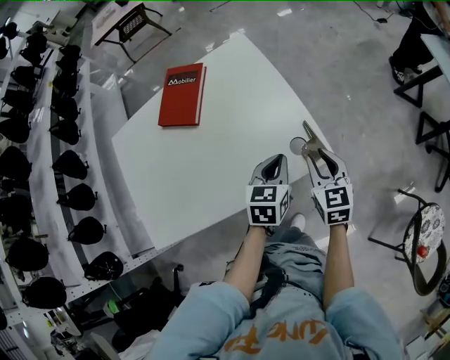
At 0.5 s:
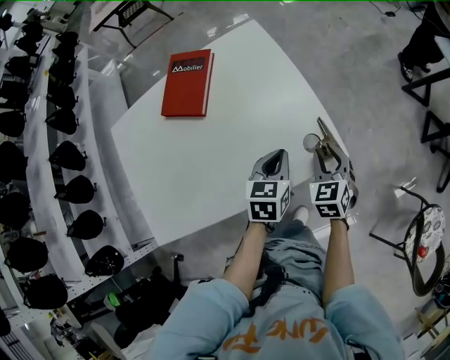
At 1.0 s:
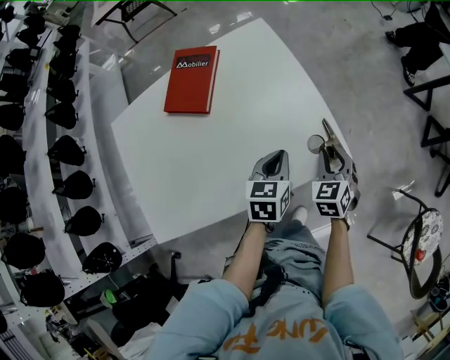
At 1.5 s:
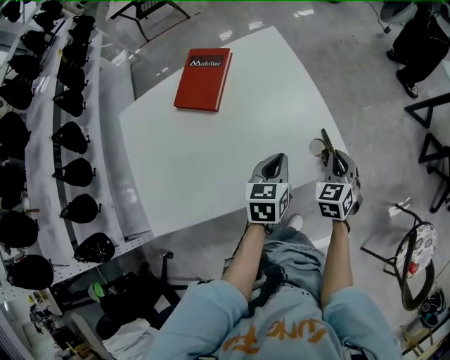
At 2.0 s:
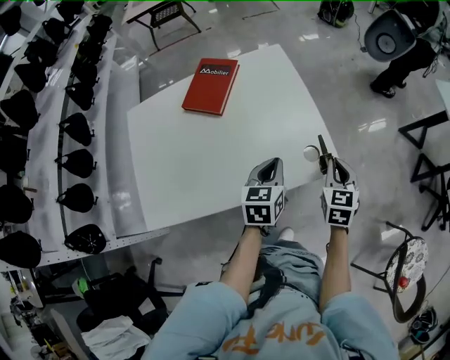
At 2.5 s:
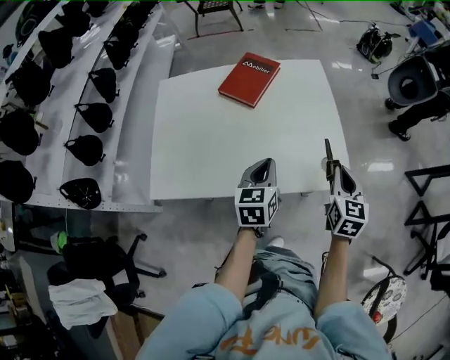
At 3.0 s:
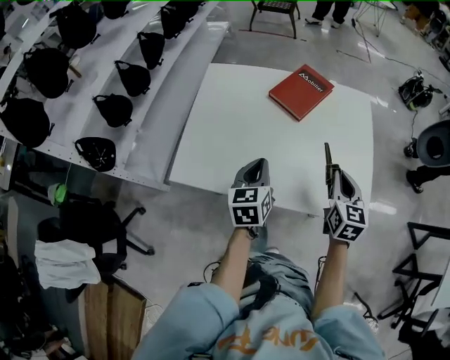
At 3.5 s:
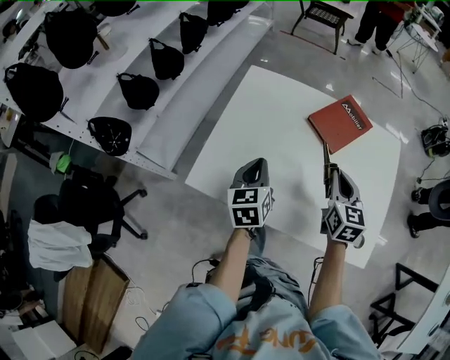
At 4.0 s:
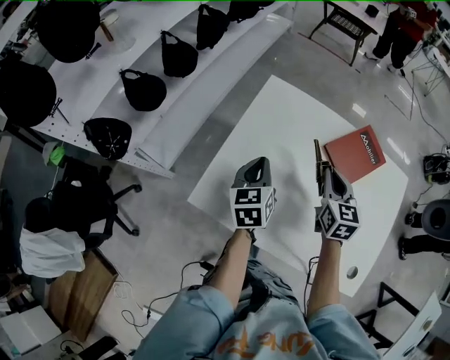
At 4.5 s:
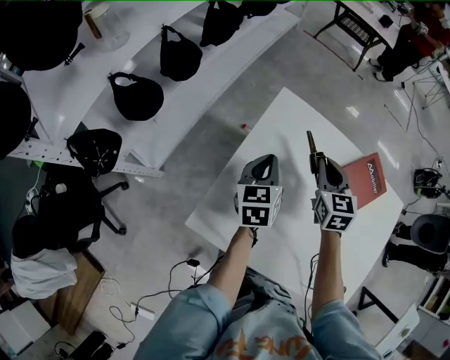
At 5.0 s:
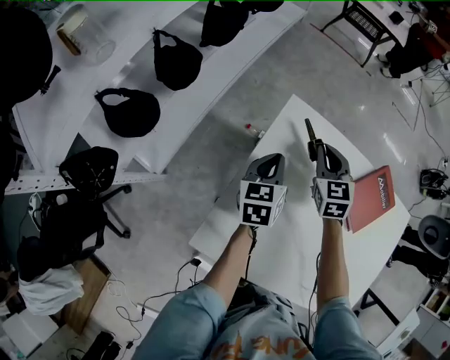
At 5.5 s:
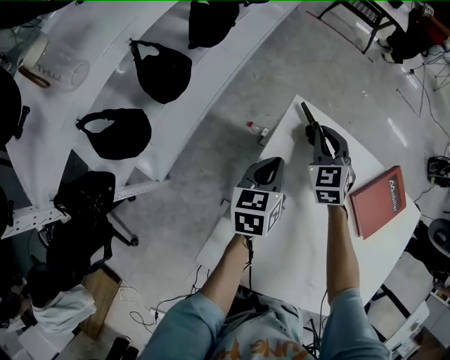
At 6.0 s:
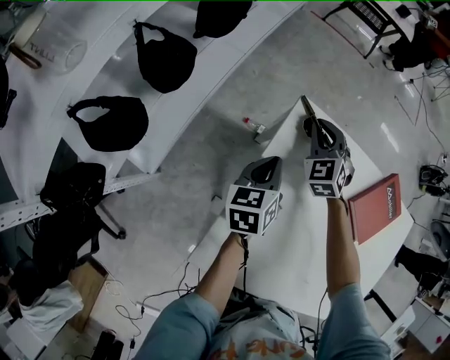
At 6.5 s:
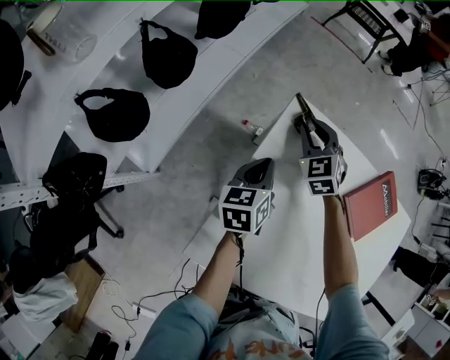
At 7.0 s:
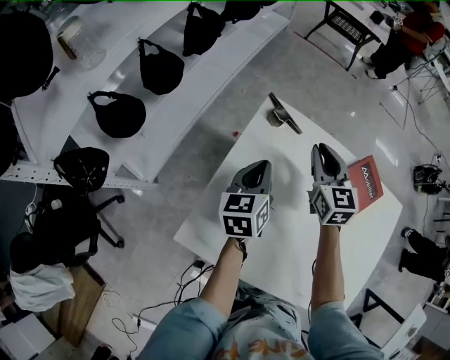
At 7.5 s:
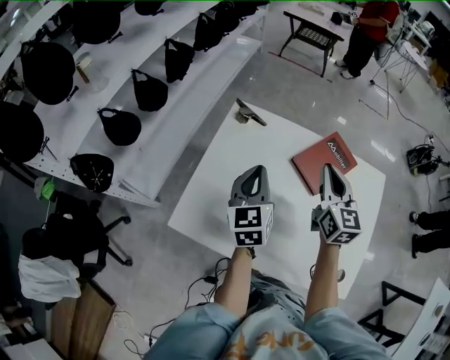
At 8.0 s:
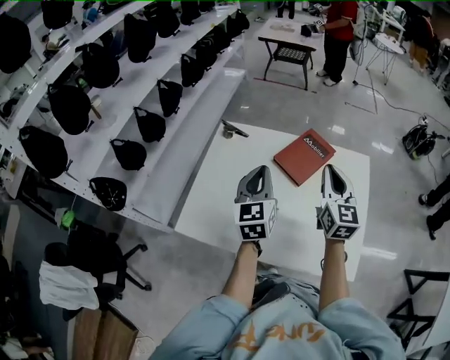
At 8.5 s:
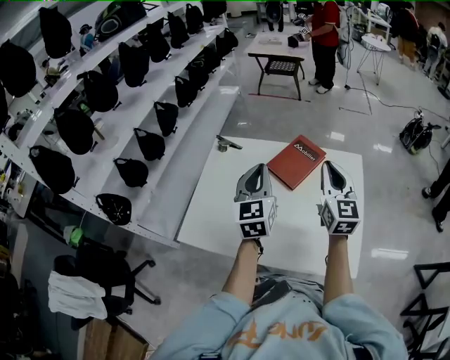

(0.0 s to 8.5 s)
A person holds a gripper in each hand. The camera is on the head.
0.0 s - 2.0 s: The left gripper shifts approximately 5 cm to the left; the right gripper closes.
2.0 s - 4.0 s: The pair of grippers is taken roughly 50 cm. The right gripper swivels approximately 50 degrees, while the left gripper swivels about 50 degrees.
4.0 s - 6.5 s: The right gripper goes roughly 35 cm forward and to the left, and rotates some 40 degrees, while the left gripper moves forward, downward and to the left, roughly 20 cm.
6.5 s - 8.5 s: The right gripper is displaced to the right, backward and upward by some 60 cm, and tips its fingers upward by roughly 30 degrees. Meanwhile the left gripper travels to the right, upward and backward by approximately 50 cm, and swivels some 40 degrees.

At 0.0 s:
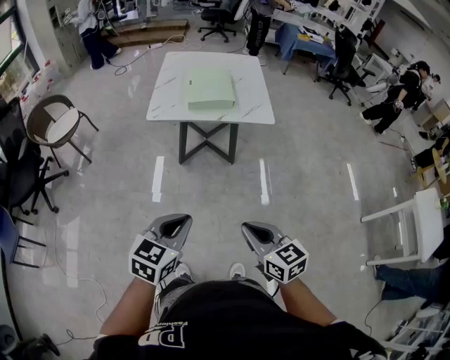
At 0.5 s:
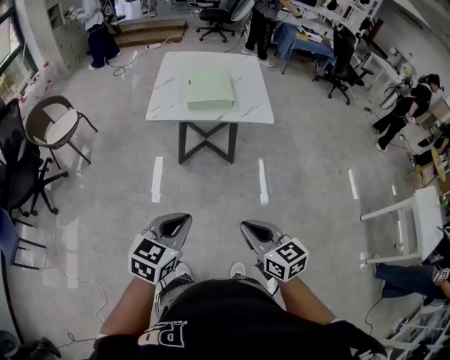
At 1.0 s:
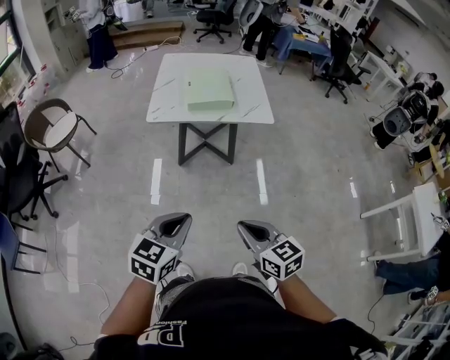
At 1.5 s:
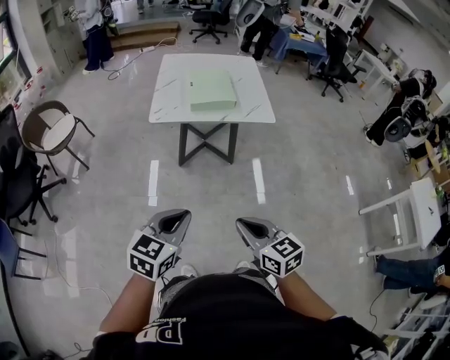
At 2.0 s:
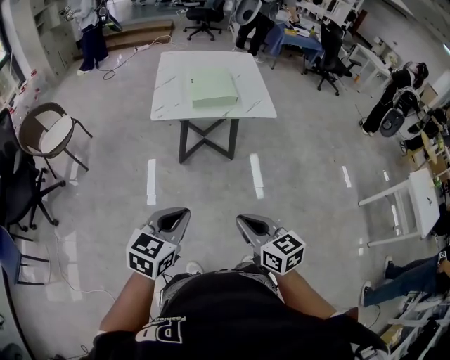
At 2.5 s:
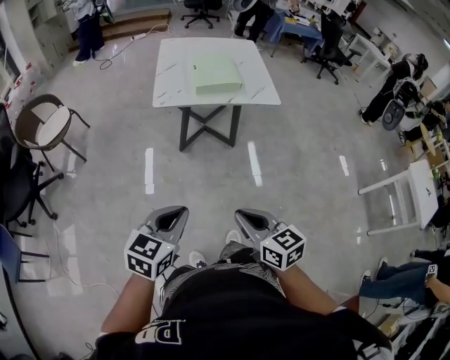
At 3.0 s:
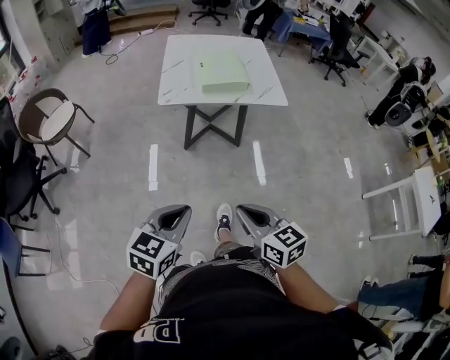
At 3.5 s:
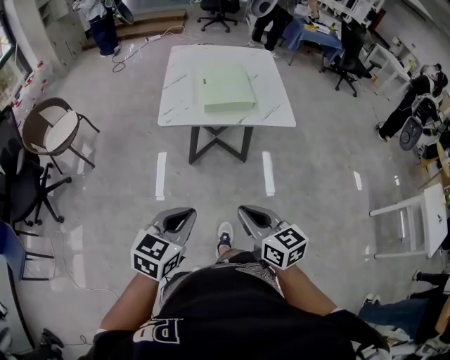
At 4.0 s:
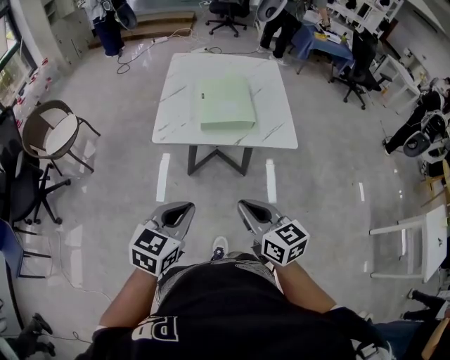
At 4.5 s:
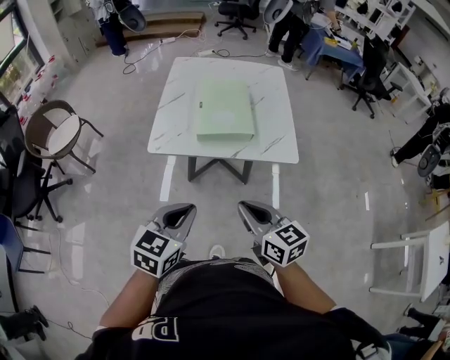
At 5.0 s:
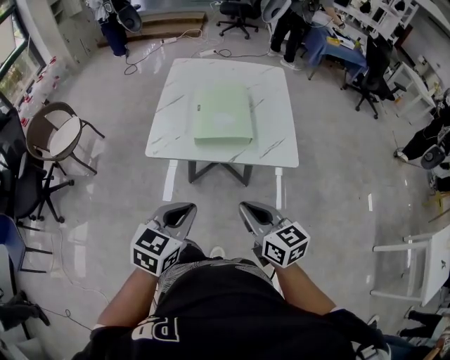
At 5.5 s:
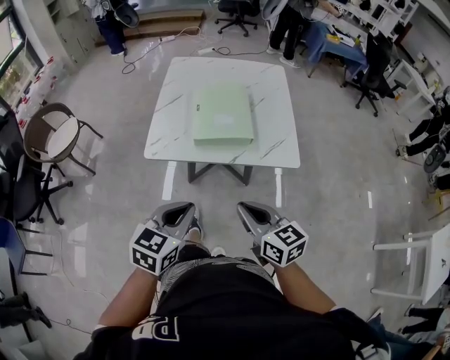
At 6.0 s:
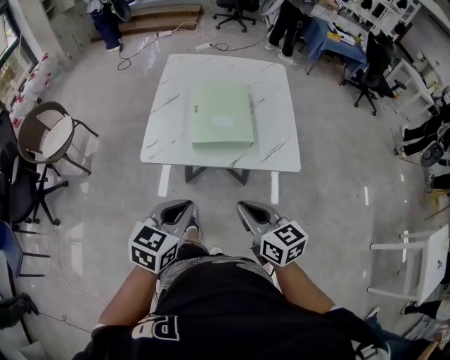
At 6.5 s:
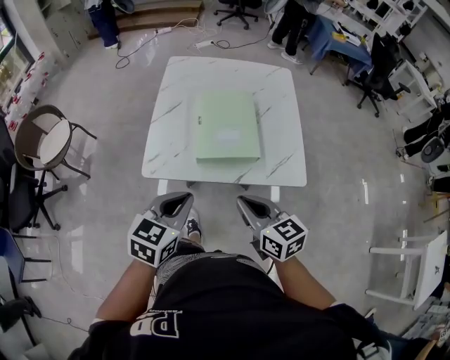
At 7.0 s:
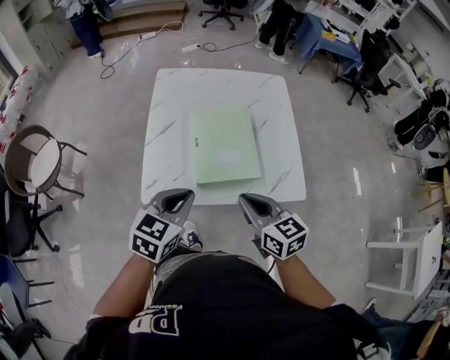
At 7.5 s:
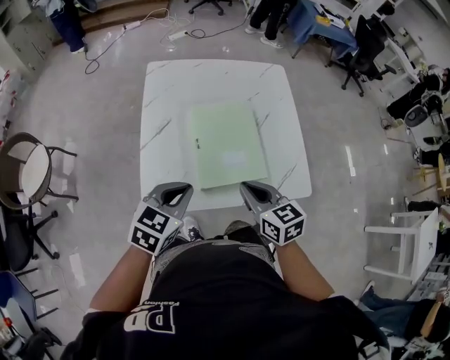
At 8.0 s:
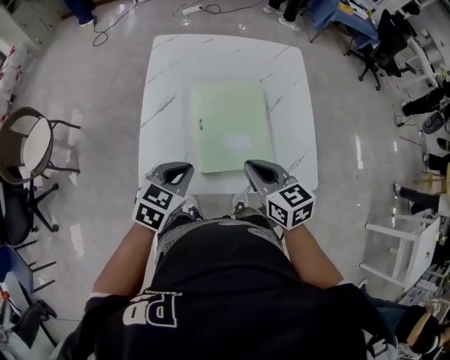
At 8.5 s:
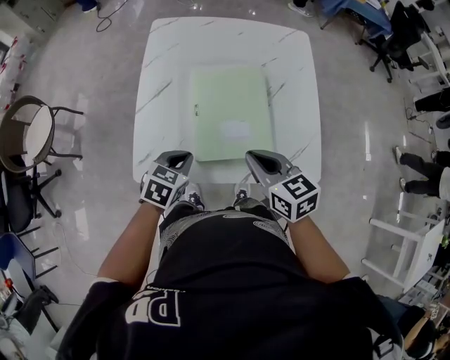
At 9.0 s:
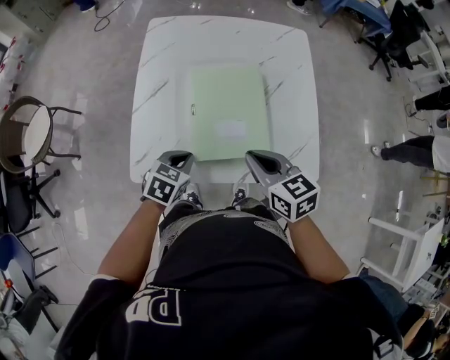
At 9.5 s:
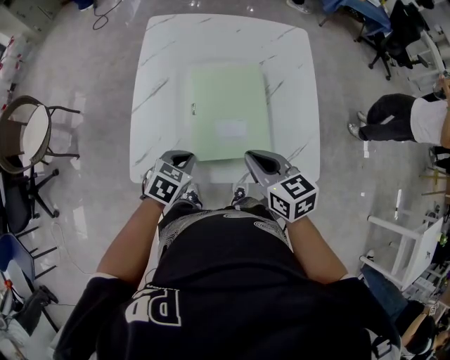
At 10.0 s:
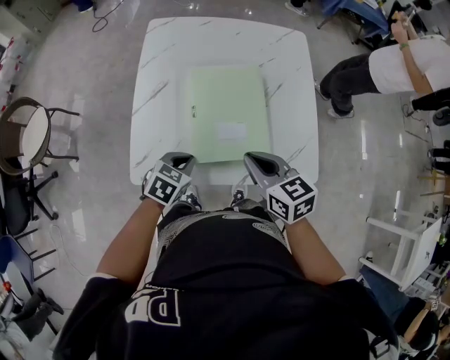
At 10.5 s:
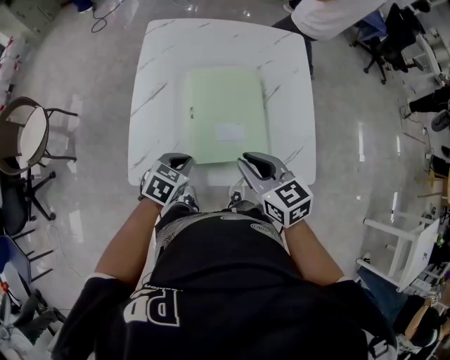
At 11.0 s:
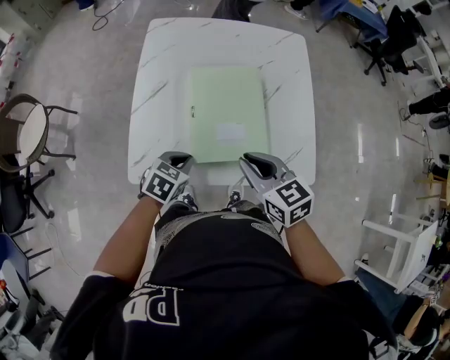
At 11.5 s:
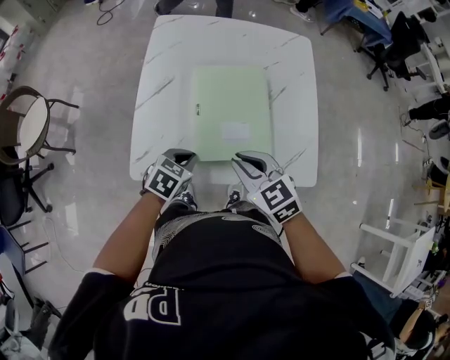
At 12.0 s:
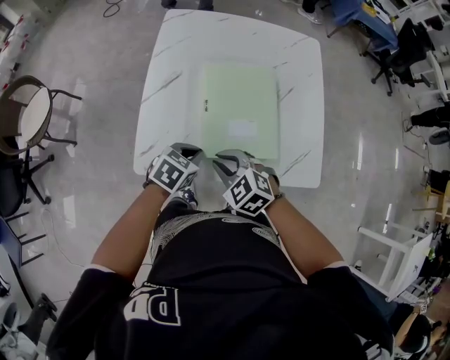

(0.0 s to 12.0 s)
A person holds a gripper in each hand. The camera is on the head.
0.0 s - 2.0 s: Both grippers travel together to the left, roughly 10 cm.
2.0 s - 4.0 s: The grippers both shift forward by approximately 25 cm.
4.0 s - 6.0 s: Both grippers travel together forward, approximately 15 cm.
6.0 s - 8.0 s: Both grippers travel together forward, approximately 30 cm.
8.0 s - 10.0 s: The left gripper is displaced downward by roughly 10 cm.
10.0 s - 12.0 s: The right gripper is displaced to the left and downward by roughly 15 cm, and swivels about 40 degrees.

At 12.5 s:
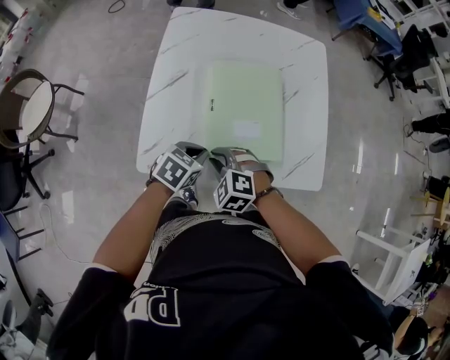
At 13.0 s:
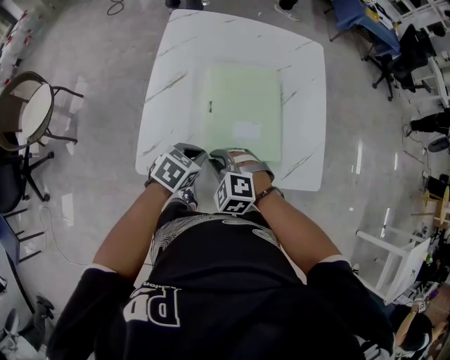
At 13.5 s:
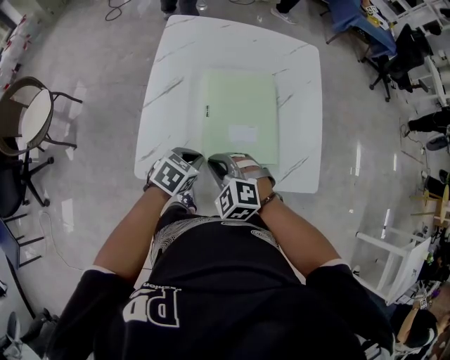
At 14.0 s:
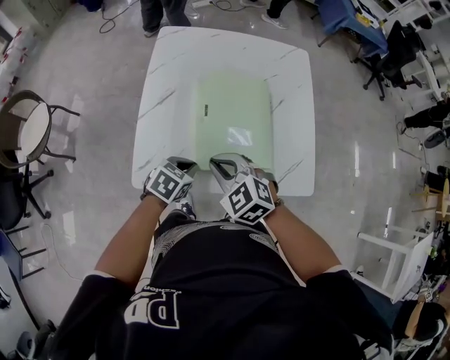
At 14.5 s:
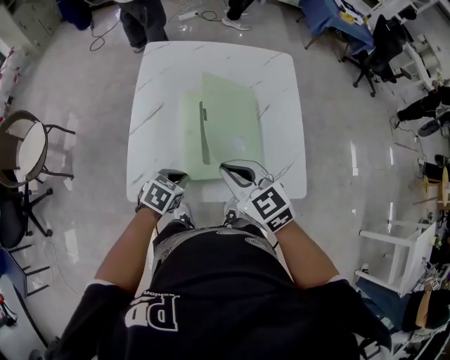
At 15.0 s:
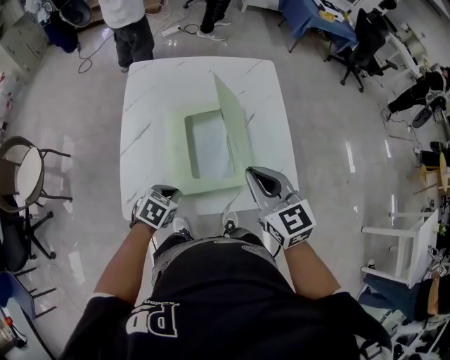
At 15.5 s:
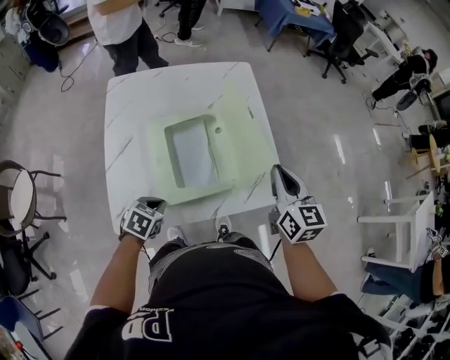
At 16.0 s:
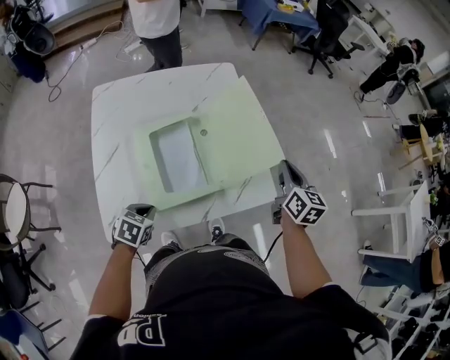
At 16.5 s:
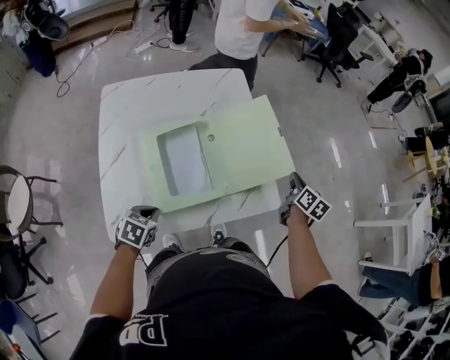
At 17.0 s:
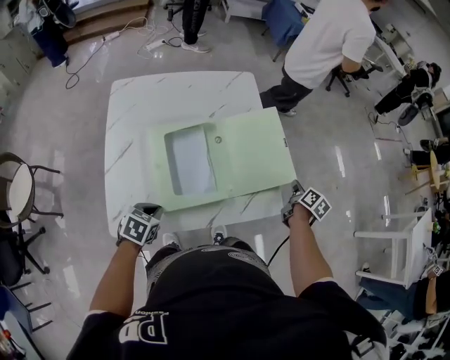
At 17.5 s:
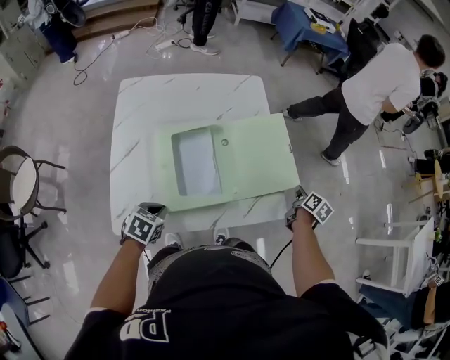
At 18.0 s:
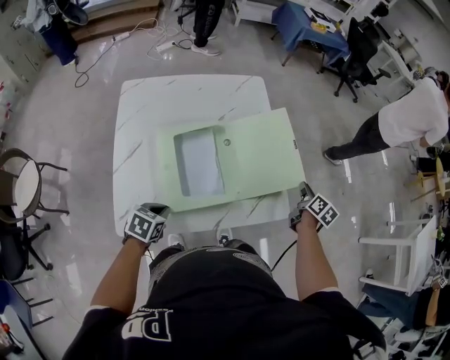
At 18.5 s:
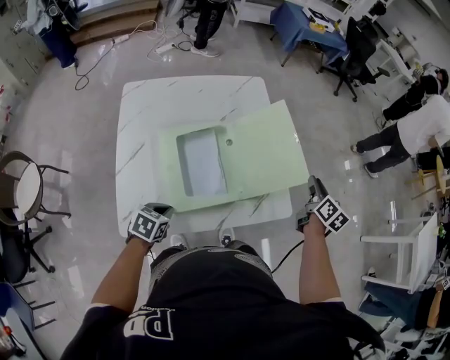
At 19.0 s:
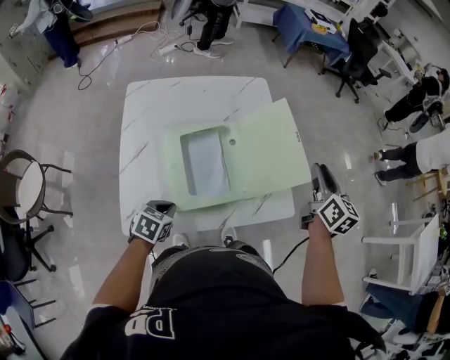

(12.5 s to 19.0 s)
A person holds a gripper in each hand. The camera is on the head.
12.5 s - 14.5 s: The right gripper heads upward and to the right, covering about 20 cm, and turns by approximately 40 degrees.
14.5 s - 17.0 s: The right gripper changes place by about 50 cm, and changes its angle by some 90 degrees.
17.0 s - 19.0 s: The right gripper heads upward and to the left, covering approximately 25 cm, turns by about 30 degrees, and opens up.
